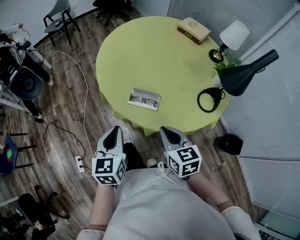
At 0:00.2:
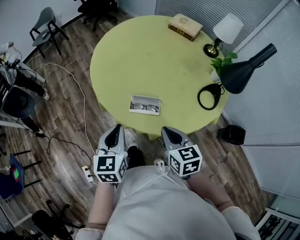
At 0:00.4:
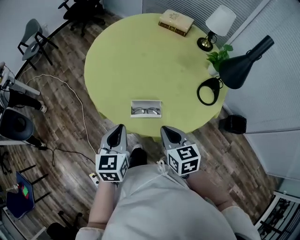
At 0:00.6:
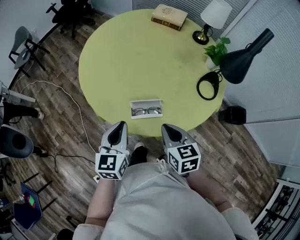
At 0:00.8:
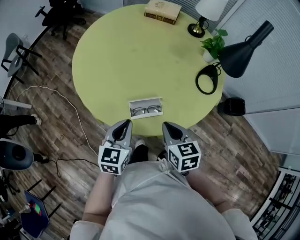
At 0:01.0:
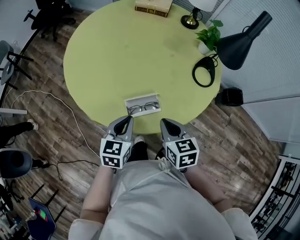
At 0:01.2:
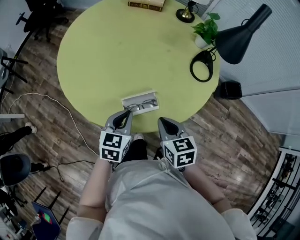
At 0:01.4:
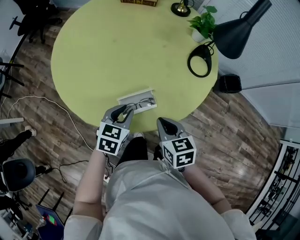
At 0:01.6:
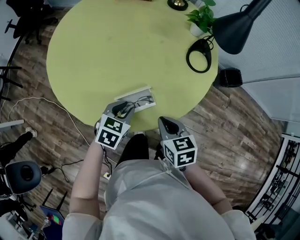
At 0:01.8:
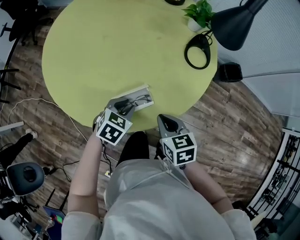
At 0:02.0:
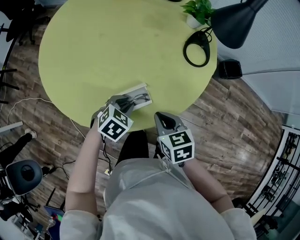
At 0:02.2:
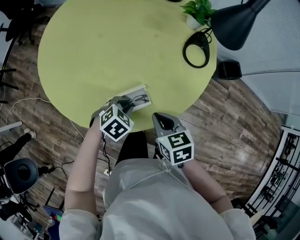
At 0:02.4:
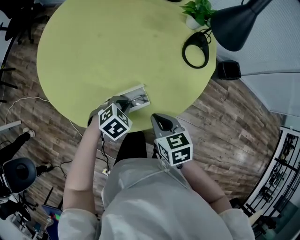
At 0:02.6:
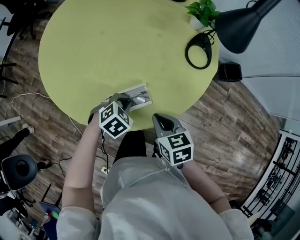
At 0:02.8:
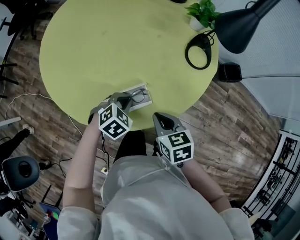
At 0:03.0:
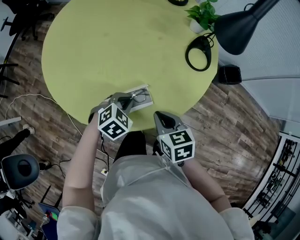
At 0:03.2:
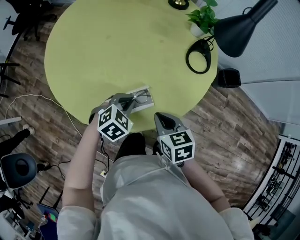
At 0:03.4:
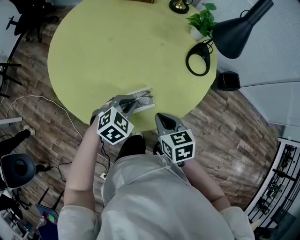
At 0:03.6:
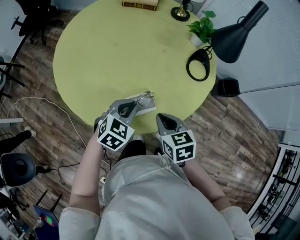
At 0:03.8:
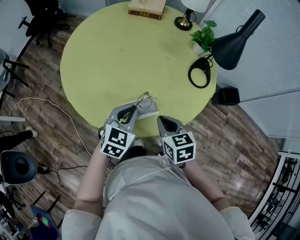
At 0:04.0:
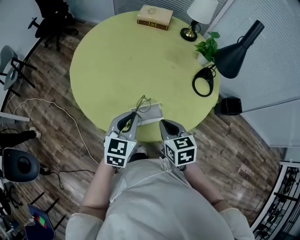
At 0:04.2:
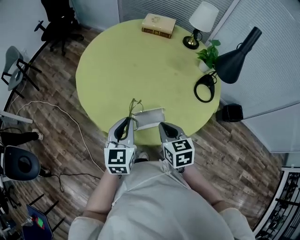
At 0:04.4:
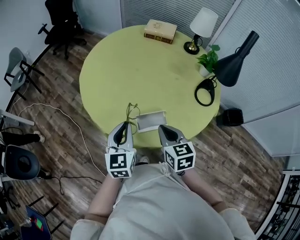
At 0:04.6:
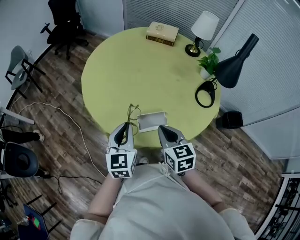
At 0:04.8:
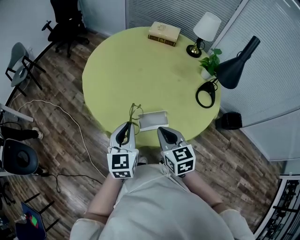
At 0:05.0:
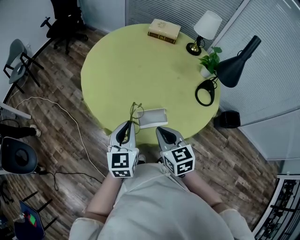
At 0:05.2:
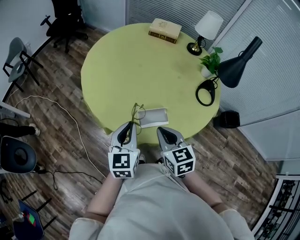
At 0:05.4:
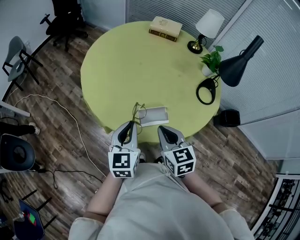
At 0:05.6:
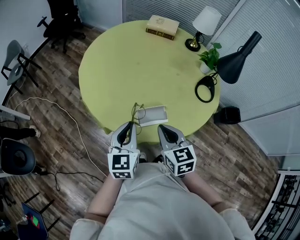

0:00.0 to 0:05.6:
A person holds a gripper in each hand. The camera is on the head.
0:00.0 to 0:01.4: The right gripper goes roughly 10 cm downward, and changes its angle by roughly 40 degrees; the left gripper moves some 25 cm, turns by about 60 degrees, and opens its fingers.
0:01.4 to 0:02.8: The left gripper is displaced downward by approximately 5 cm, and rotates roughly 40 degrees.
0:02.8 to 0:04.2: The left gripper goes approximately 20 cm upward and to the left, and angles its fingers upward, by roughly 40 degrees; the right gripper travels upward and to the left by about 10 cm.
0:04.2 to 0:05.6: The right gripper moves roughly 5 cm.

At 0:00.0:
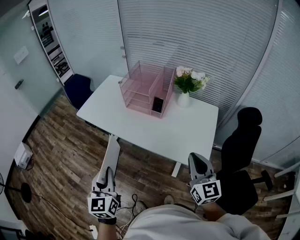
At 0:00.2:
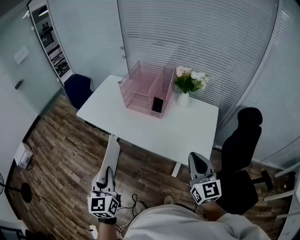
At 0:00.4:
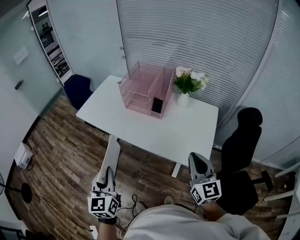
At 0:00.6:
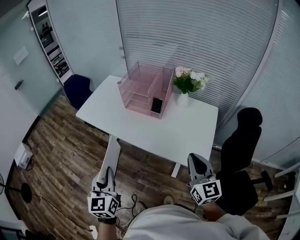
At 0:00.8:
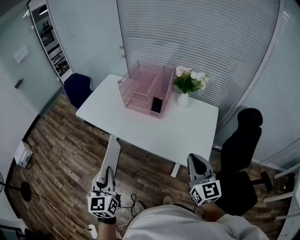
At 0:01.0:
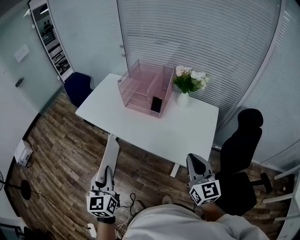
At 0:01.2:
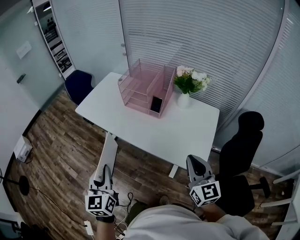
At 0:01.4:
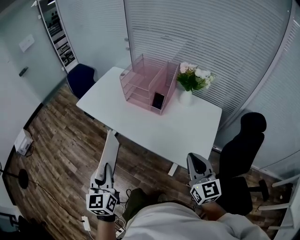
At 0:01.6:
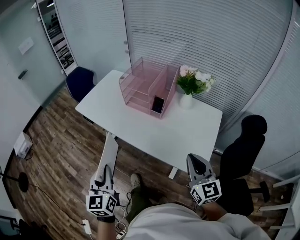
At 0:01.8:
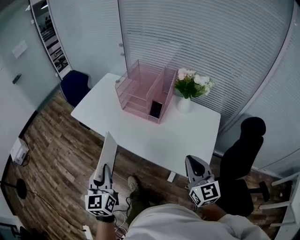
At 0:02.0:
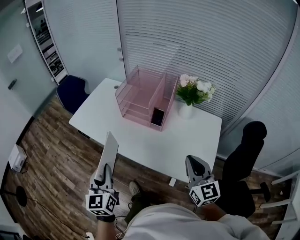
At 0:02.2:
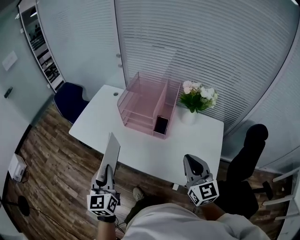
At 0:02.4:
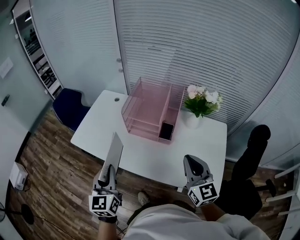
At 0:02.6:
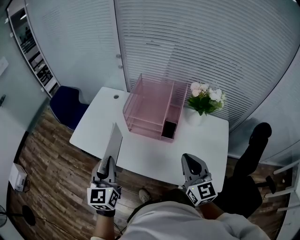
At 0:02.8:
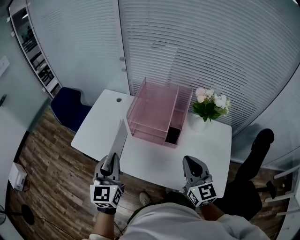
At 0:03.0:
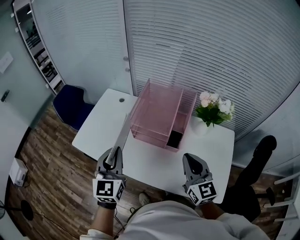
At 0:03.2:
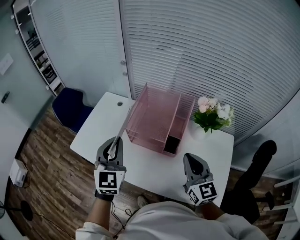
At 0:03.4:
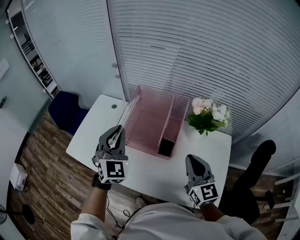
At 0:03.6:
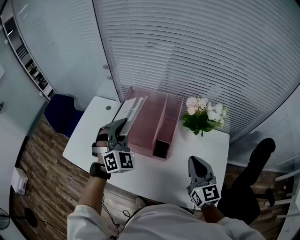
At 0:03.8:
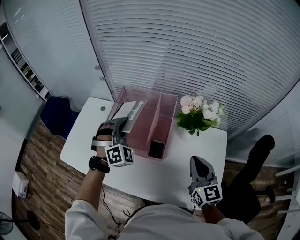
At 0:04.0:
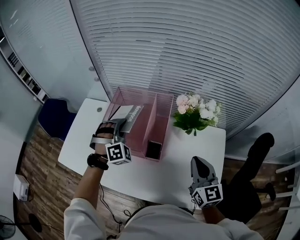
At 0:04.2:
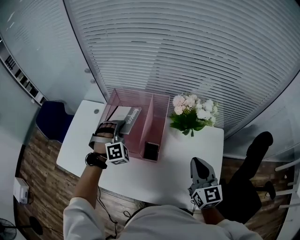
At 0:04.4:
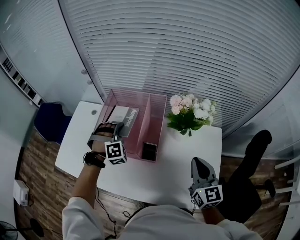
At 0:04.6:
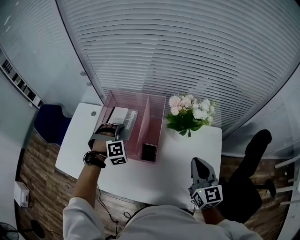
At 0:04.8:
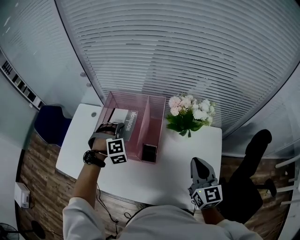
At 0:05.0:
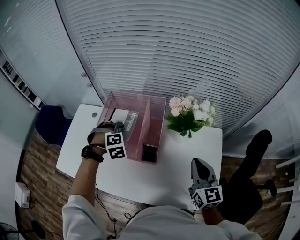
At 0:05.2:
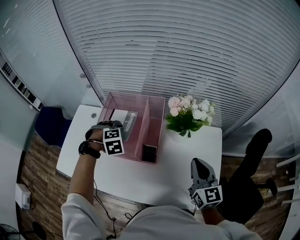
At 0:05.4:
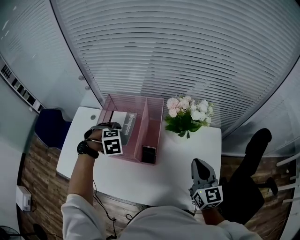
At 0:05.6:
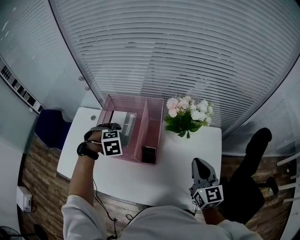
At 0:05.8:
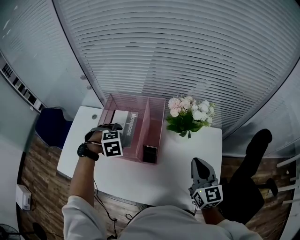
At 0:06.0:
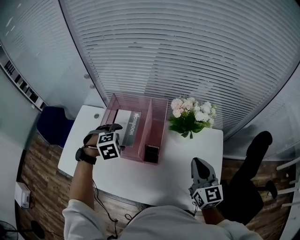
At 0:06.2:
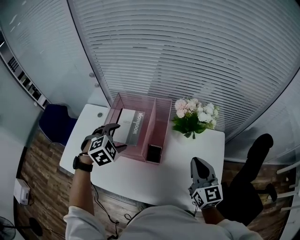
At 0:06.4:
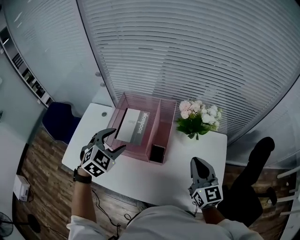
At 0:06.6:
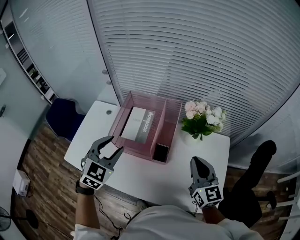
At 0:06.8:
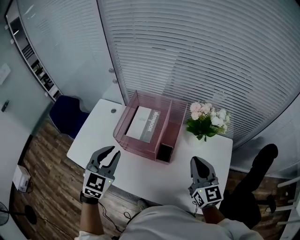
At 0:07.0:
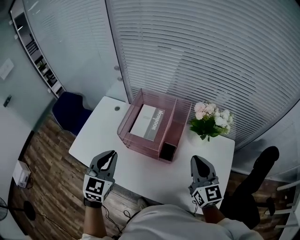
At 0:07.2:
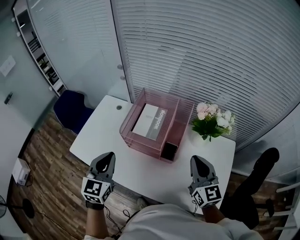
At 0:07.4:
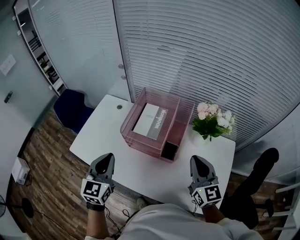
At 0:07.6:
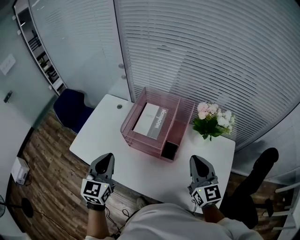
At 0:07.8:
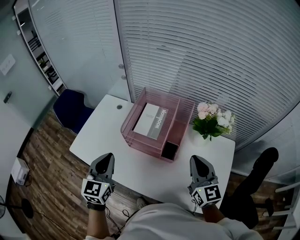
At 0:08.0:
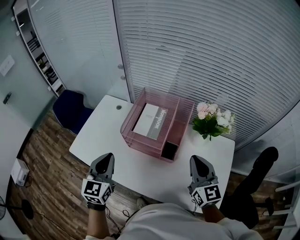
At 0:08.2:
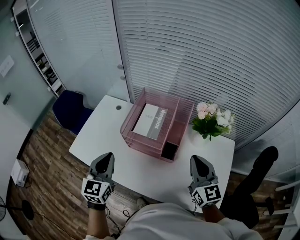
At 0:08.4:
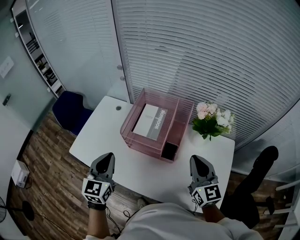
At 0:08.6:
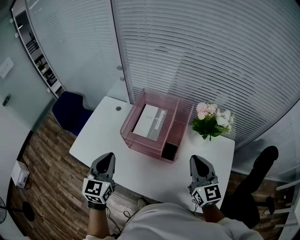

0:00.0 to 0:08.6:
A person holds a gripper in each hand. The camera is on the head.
0:00.0 to 0:01.4: There are only small adjustments of the grippers.
0:01.4 to 0:02.8: The right gripper goes roughly 30 cm forward and to the left. The left gripper heads forward, covering approximately 35 cm.
0:02.8 to 0:04.4: The left gripper moves forward, to the right and downward, roughly 35 cm, and rotates around the line of its fingers by approximately 80 degrees, clockwise from behind; the right gripper moves to the right and forward, some 20 cm.
0:04.4 to 0:05.8: The left gripper tips its fingers downward by roughly 40 degrees, and opens up.
0:05.8 to 0:07.2: The left gripper changes place by roughly 25 cm, points its fingers roughly 60 degrees further upward, and closes its fingers; the right gripper moves about 10 cm.
0:07.2 to 0:08.6: There are only small adjustments of the grippers.

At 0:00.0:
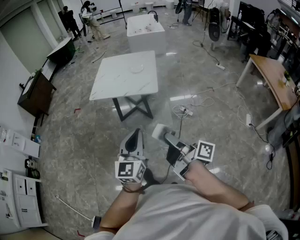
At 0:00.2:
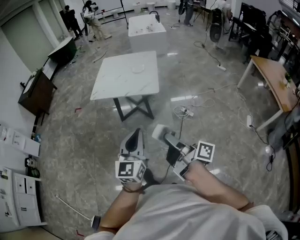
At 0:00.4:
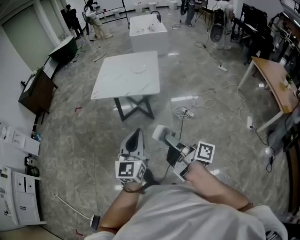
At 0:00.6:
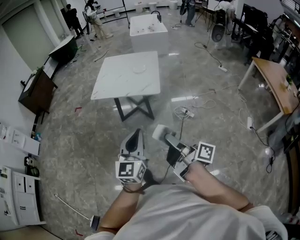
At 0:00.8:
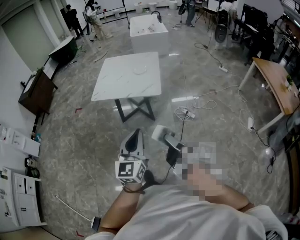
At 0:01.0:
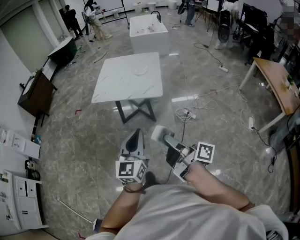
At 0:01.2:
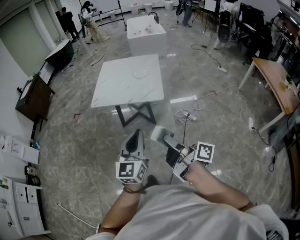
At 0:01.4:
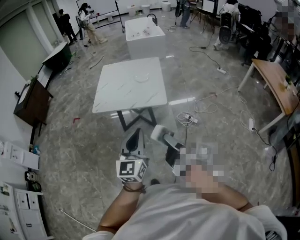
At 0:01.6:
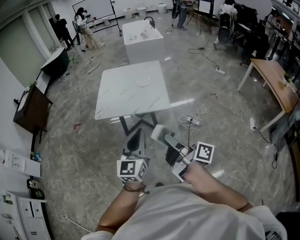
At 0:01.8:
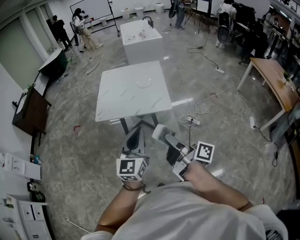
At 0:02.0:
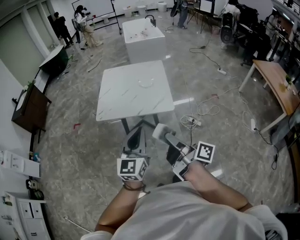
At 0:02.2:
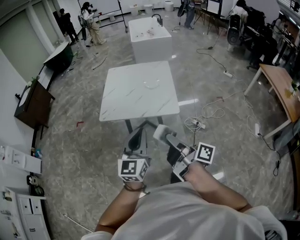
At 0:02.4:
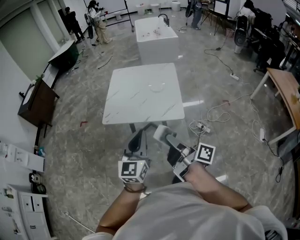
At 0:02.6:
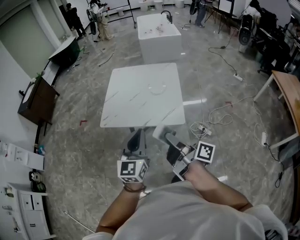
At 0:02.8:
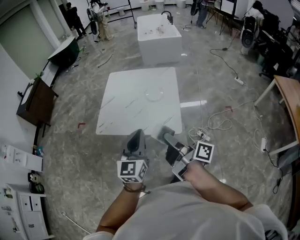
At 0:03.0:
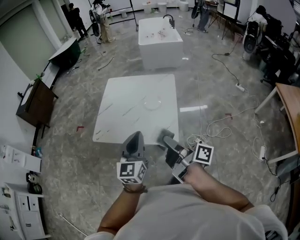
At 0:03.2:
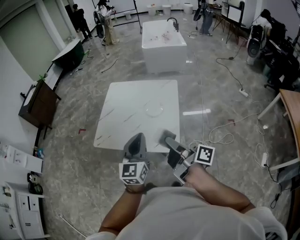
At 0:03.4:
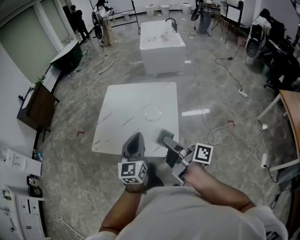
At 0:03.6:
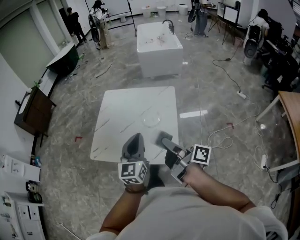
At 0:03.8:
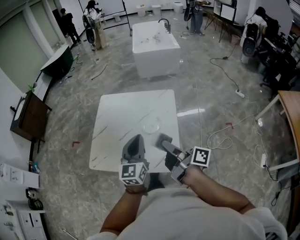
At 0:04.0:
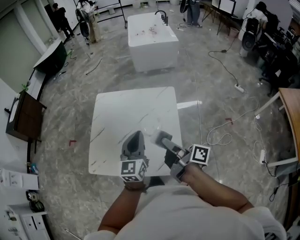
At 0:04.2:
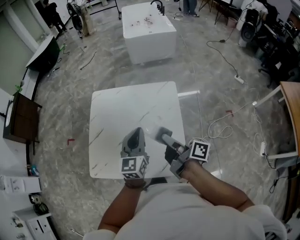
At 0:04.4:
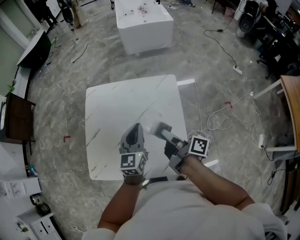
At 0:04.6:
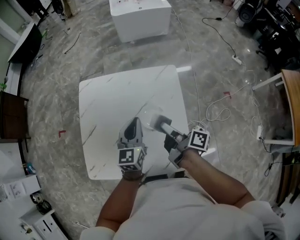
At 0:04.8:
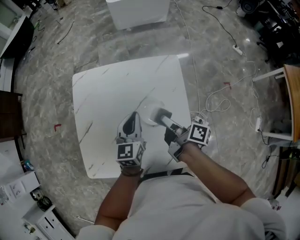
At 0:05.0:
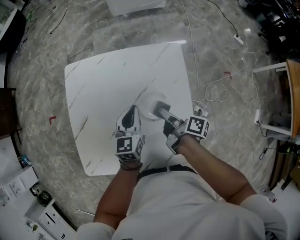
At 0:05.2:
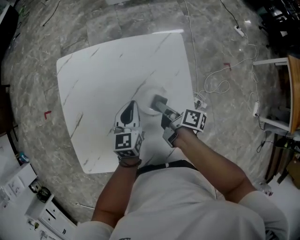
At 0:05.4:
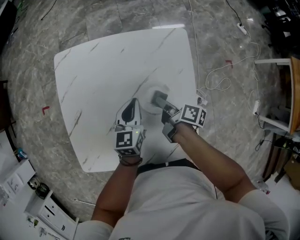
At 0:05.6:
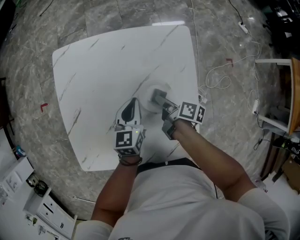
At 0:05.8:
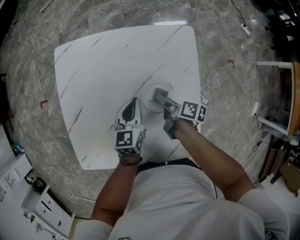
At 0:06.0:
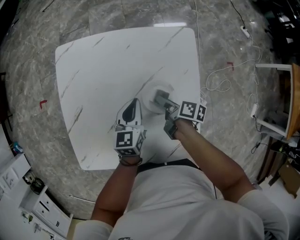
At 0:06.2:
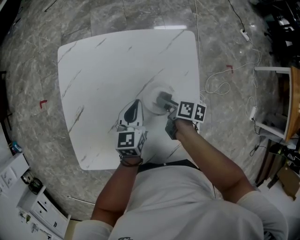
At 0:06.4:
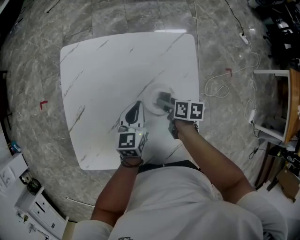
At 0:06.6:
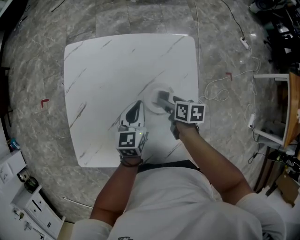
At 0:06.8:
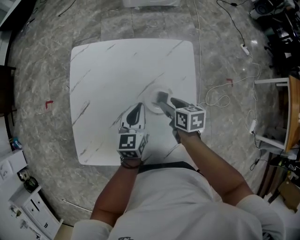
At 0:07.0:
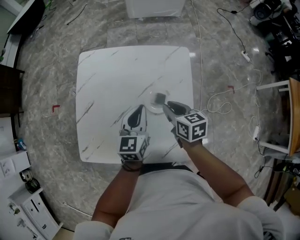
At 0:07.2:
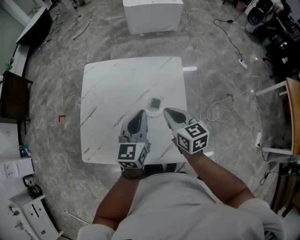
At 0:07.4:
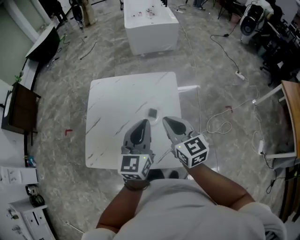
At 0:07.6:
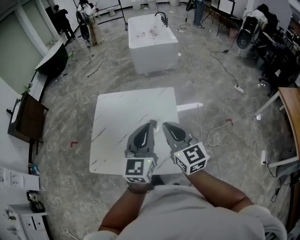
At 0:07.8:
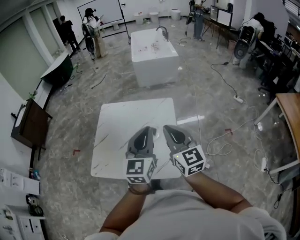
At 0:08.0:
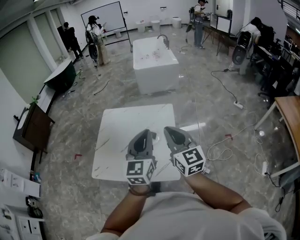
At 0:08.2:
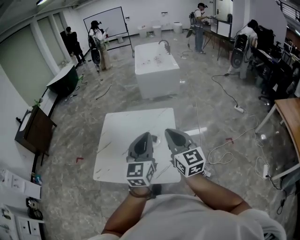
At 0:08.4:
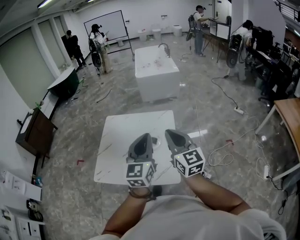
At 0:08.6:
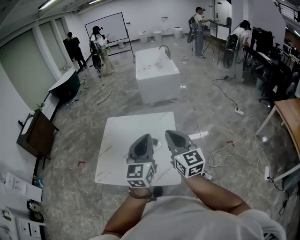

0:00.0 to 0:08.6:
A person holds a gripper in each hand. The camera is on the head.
0:00.0 to 0:01.4: The two grippers go roughly 20 cm forward and to the left.
0:01.4 to 0:02.8: The two grippers go about 35 cm forward.
0:02.8 to 0:04.4: The pair of grippers is taken forward, roughly 50 cm.
0:04.4 to 0:05.8: The grippers both shift downward and forward by roughly 30 cm. The left gripper rotates roughly 20 degrees. Meanwhile the right gripper swivels about 30 degrees.
0:05.8 to 0:07.2: The grippers both shift upward and backward by approximately 30 cm. The right gripper rotates around the line of its fingers by about 60 degrees, counterclockwise from behind, and opens, then closes again.
0:07.2 to 0:08.6: The grippers both shift upward and backward by some 35 cm. The left gripper changes its angle by approximately 20 degrees, while the right gripper tips its fingers upward by approximately 30 degrees.
